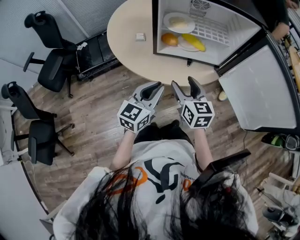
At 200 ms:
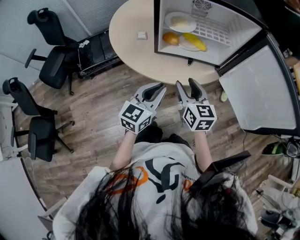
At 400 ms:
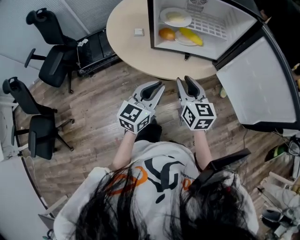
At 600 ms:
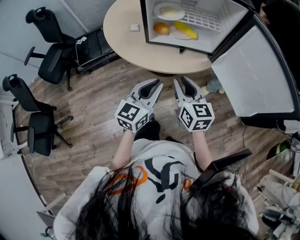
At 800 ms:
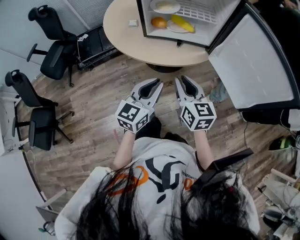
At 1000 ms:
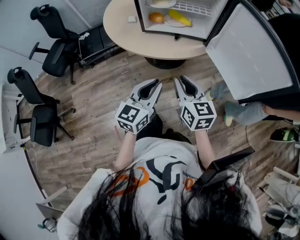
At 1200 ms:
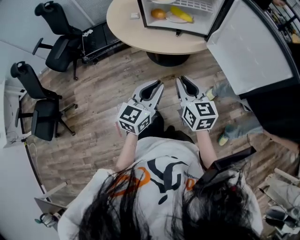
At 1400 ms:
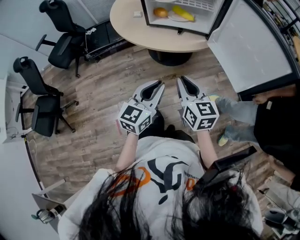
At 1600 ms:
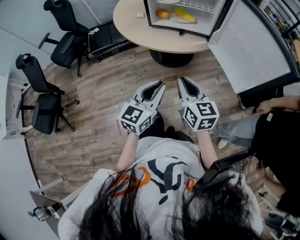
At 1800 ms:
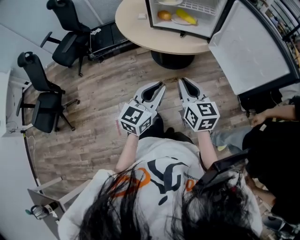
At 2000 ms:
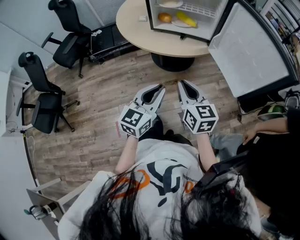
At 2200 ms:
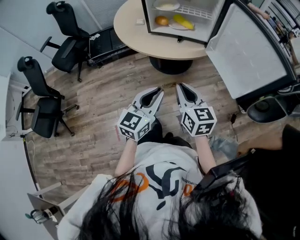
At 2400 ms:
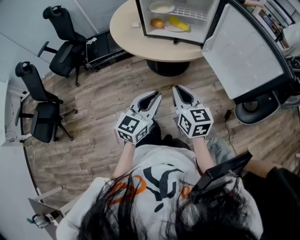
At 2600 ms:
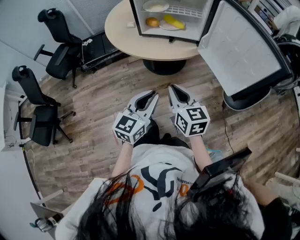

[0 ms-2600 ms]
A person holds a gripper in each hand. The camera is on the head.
0 ms to 1200 ms: Both grippers travel together backward and to the right, about 20 cm. The right gripper closes its fingers.
1200 ms to 2600 ms: The grippers make only small movements.

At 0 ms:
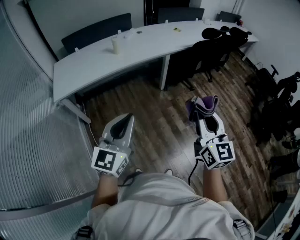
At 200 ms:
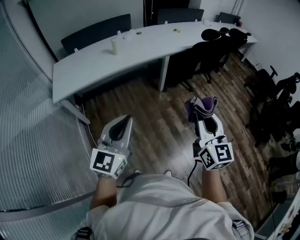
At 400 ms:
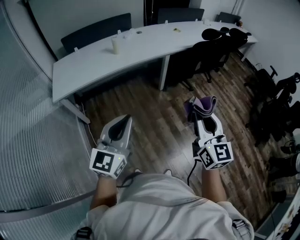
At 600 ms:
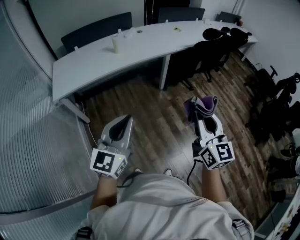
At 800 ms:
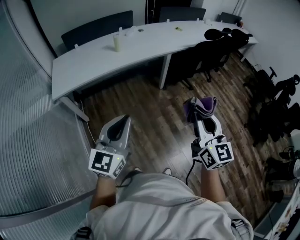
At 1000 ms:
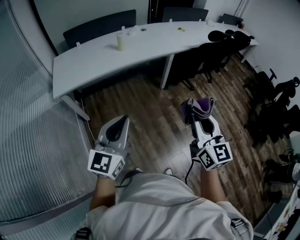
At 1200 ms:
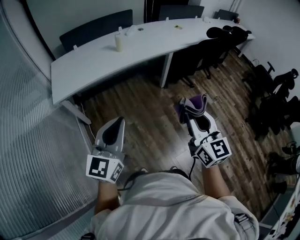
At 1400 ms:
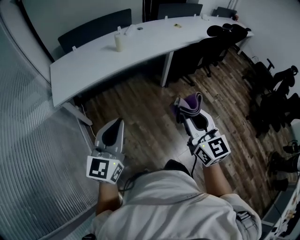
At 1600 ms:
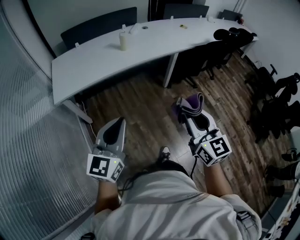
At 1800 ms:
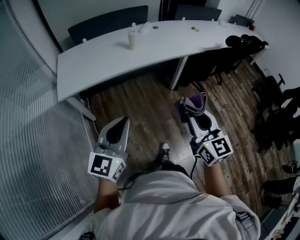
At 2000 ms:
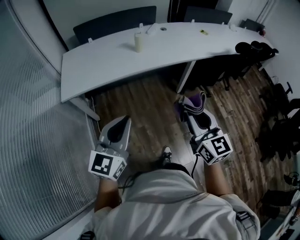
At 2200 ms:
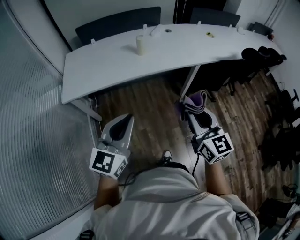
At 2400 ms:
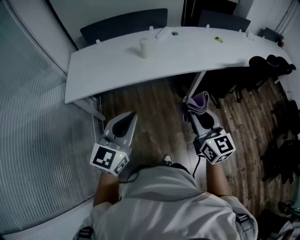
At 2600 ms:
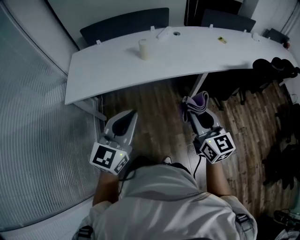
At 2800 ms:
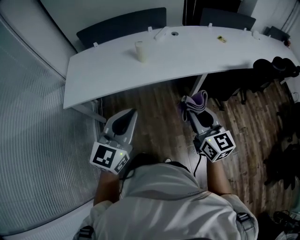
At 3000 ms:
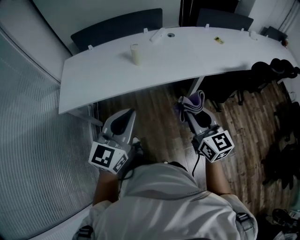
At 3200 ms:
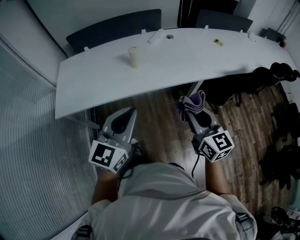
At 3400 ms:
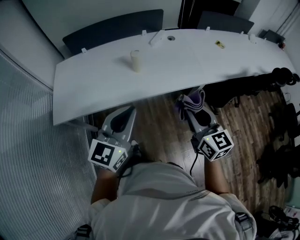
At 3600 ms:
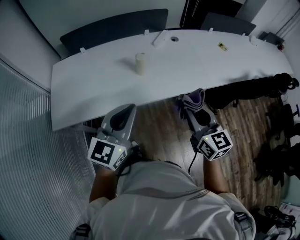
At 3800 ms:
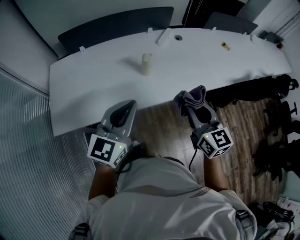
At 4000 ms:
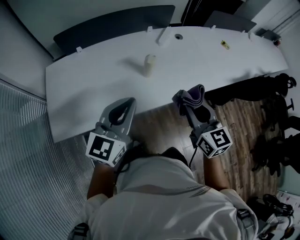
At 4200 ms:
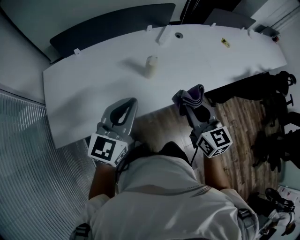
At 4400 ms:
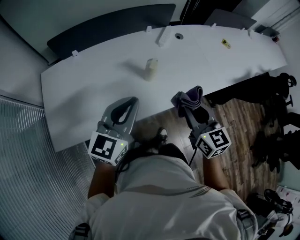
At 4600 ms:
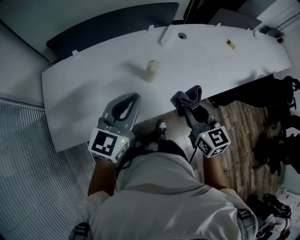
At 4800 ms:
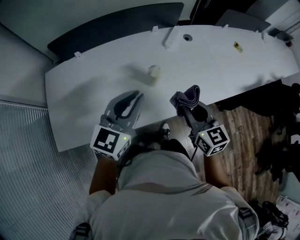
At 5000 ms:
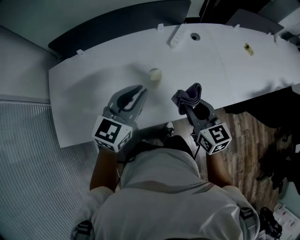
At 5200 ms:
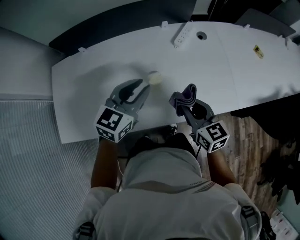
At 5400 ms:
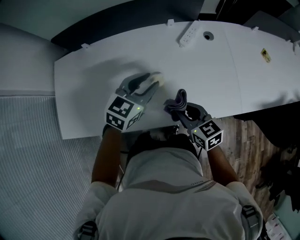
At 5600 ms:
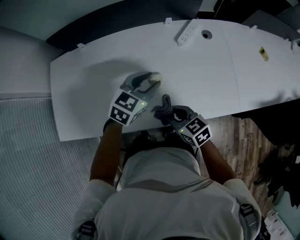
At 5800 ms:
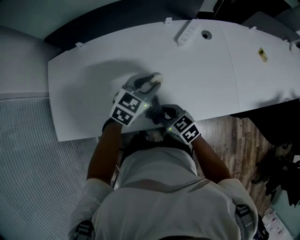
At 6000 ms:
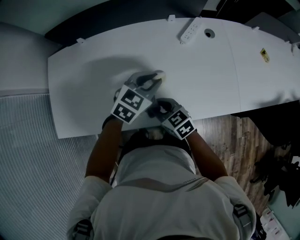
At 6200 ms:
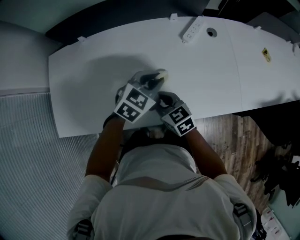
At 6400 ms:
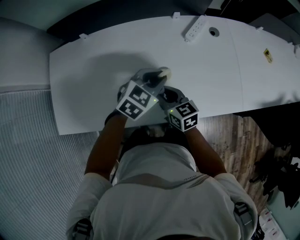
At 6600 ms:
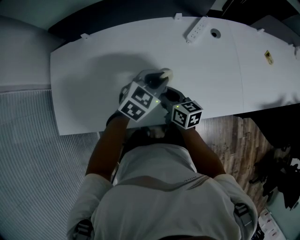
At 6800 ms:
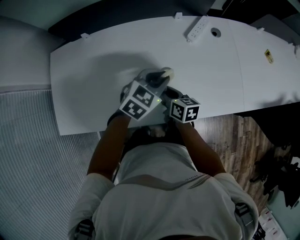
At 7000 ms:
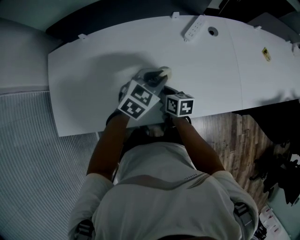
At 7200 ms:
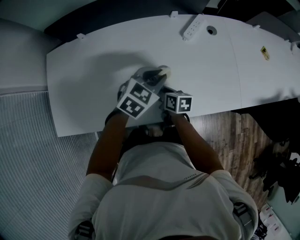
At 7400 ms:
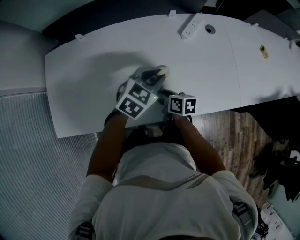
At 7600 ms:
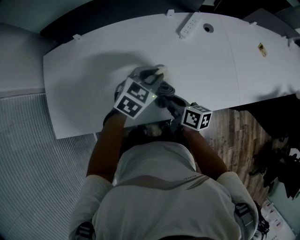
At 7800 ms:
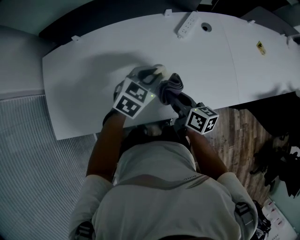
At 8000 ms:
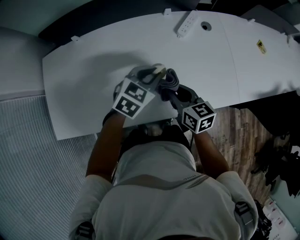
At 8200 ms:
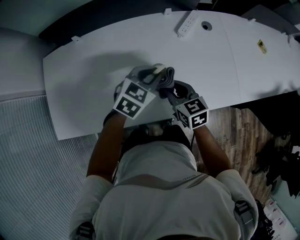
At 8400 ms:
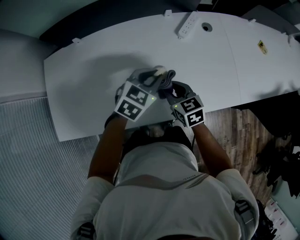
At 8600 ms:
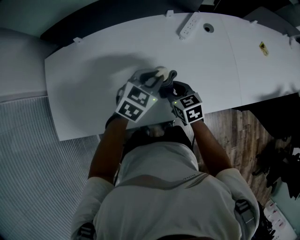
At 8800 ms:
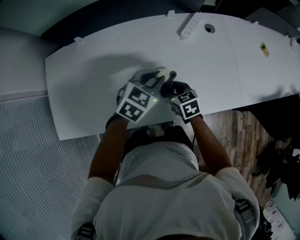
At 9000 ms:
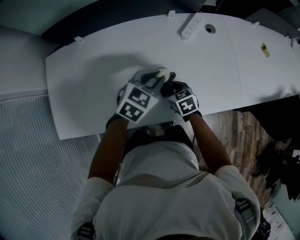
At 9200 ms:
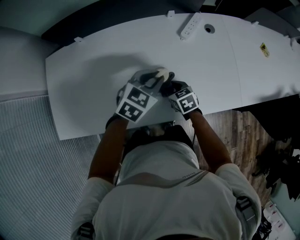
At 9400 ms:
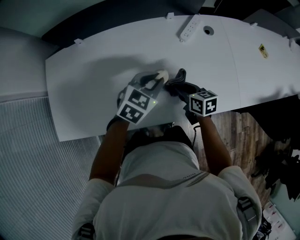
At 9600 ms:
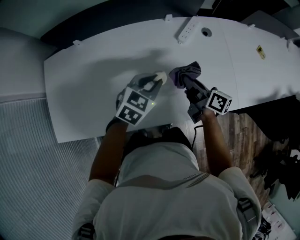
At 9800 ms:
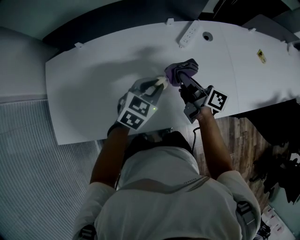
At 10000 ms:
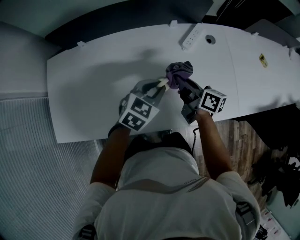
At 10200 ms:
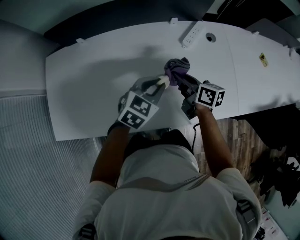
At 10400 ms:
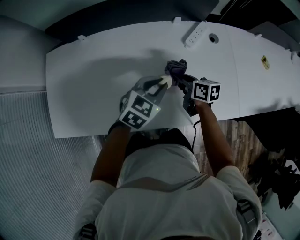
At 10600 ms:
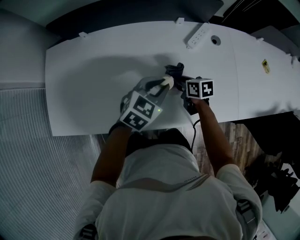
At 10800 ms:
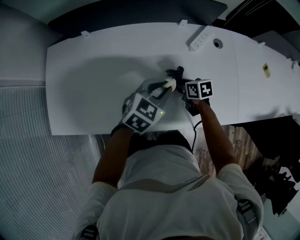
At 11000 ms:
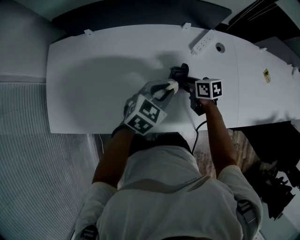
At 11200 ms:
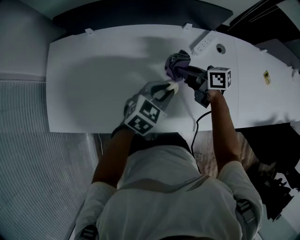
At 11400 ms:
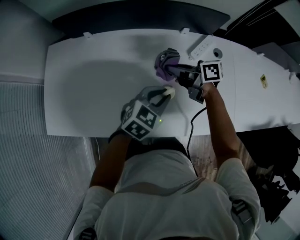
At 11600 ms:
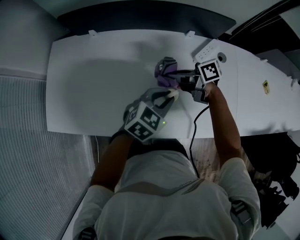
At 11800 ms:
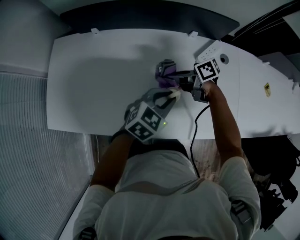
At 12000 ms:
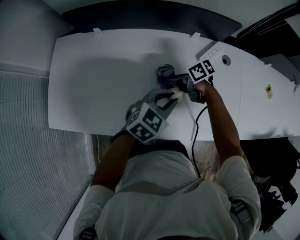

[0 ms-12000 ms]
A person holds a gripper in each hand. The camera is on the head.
0 ms to 1600 ms: The two grippers go about 15 cm to the left.
1600 ms to 3000 ms: The left gripper travels forward and to the right by roughly 35 cm. Meanwhile the right gripper heads forward, covering approximately 35 cm.
3000 ms to 4400 ms: The two grippers go roughly 35 cm forward and to the left.
4400 ms to 6000 ms: The left gripper heads forward, downward and to the right, covering approximately 30 cm, and tilts its fingers about 30 degrees downward; the right gripper moves downward, forward and to the left, some 25 cm, and swivels roughly 40 degrees.
6000 ms to 7600 ms: The right gripper reaches approximately 5 cm downward, then returns, and rotates around the line of its fingers by about 50 degrees, clockwise from behind.
7600 ms to 9000 ms: The right gripper moves downward and forward, some 10 cm, and changes its angle by roughly 50 degrees.
9000 ms to 10400 ms: The right gripper heads forward and upward, covering some 10 cm, and rotates about 30 degrees.
10400 ms to 12000 ms: The right gripper moves up and down over about 15 cm, changing direction 2 times, and swivels some 40 degrees.

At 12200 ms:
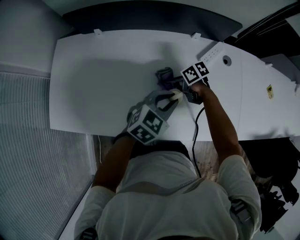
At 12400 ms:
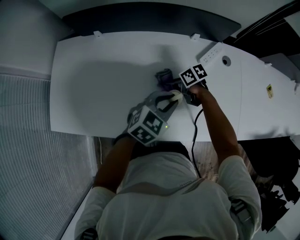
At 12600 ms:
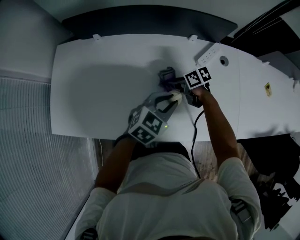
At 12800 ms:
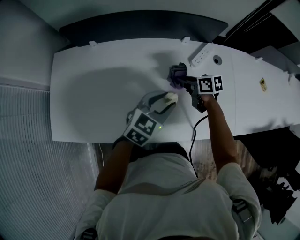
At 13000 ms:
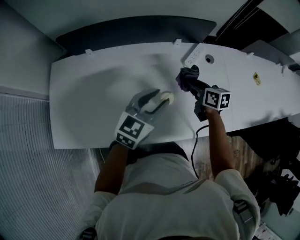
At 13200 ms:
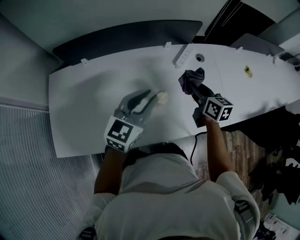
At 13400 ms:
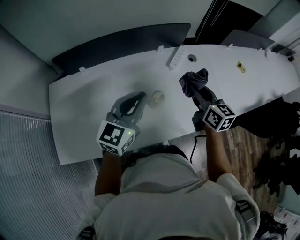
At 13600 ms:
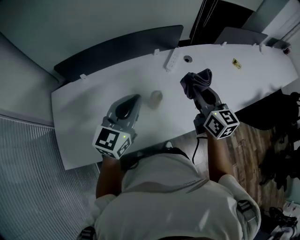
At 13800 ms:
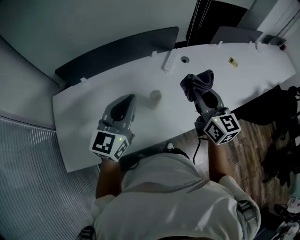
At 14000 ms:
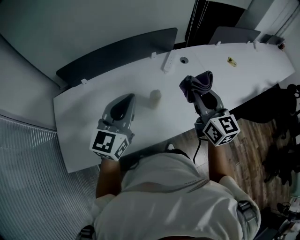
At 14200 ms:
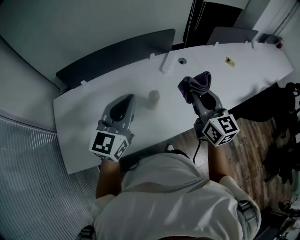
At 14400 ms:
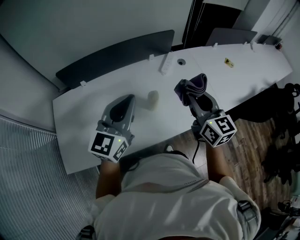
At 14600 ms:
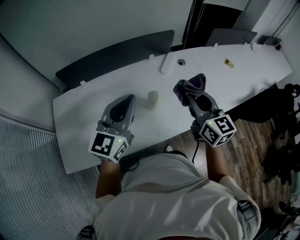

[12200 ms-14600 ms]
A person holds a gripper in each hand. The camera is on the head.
12200 ms to 13400 ms: The left gripper travels upward by roughly 15 cm, turns by roughly 30 degrees, and opens and closes again, while the right gripper travels upward by some 25 cm, and turns by some 80 degrees.
13400 ms to 14600 ms: The left gripper shifts about 10 cm upward and backward; the right gripper is displaced backward and upward by roughly 15 cm.

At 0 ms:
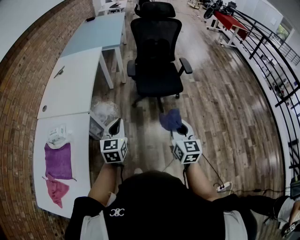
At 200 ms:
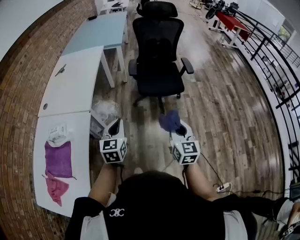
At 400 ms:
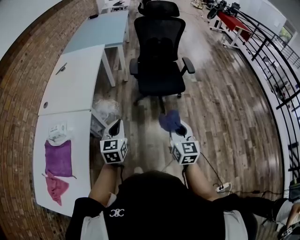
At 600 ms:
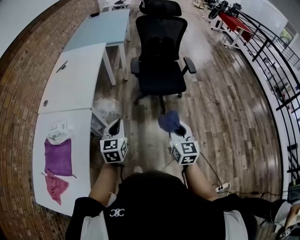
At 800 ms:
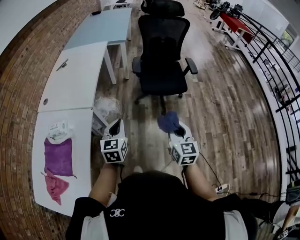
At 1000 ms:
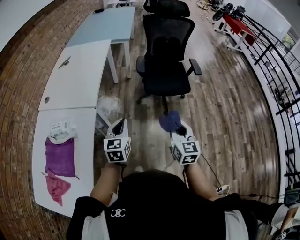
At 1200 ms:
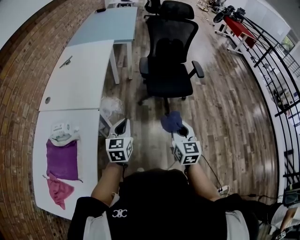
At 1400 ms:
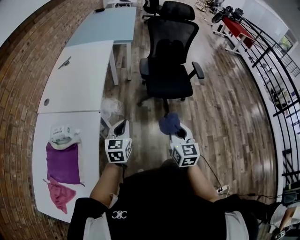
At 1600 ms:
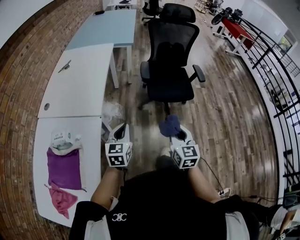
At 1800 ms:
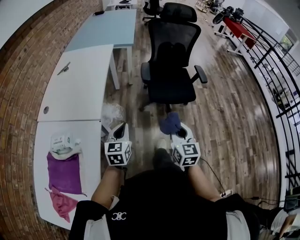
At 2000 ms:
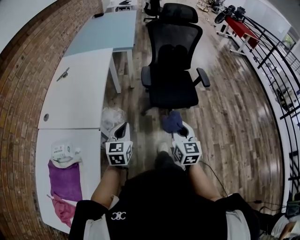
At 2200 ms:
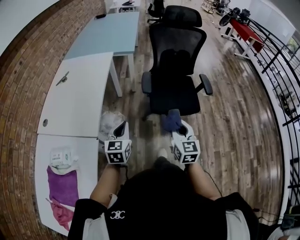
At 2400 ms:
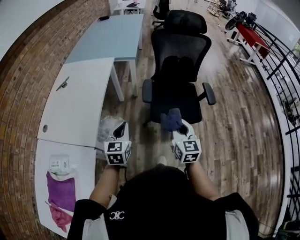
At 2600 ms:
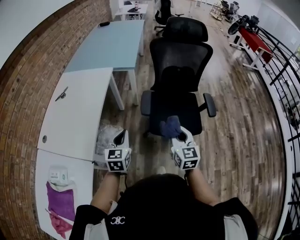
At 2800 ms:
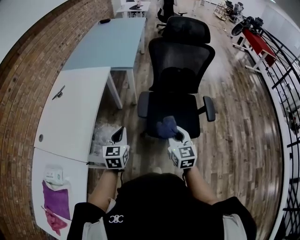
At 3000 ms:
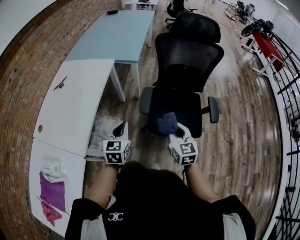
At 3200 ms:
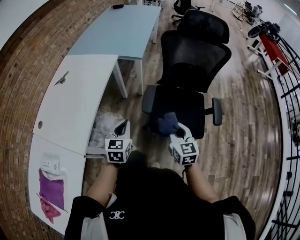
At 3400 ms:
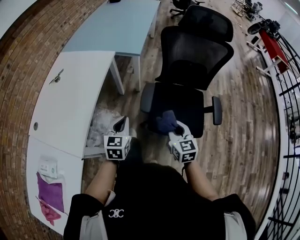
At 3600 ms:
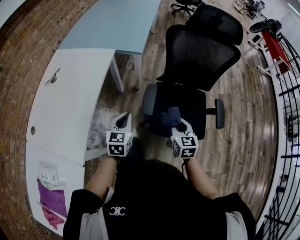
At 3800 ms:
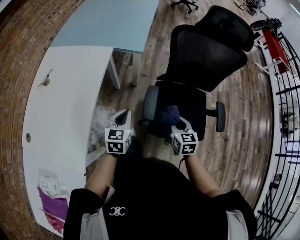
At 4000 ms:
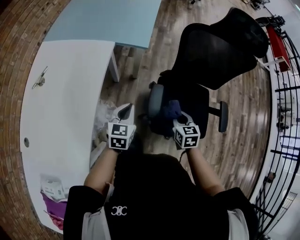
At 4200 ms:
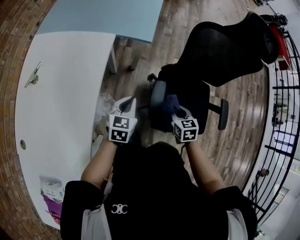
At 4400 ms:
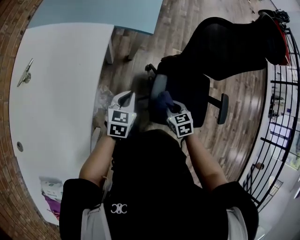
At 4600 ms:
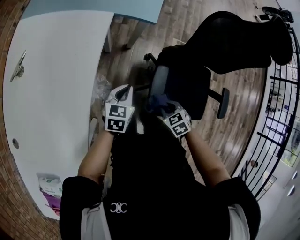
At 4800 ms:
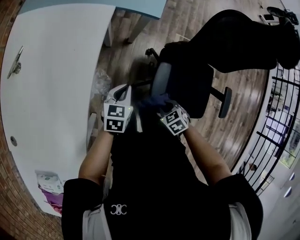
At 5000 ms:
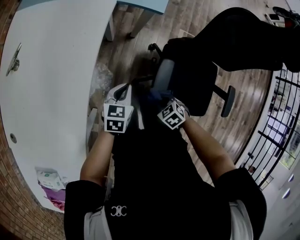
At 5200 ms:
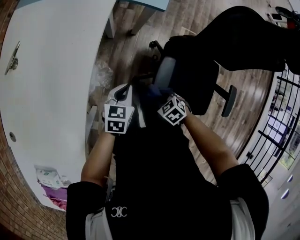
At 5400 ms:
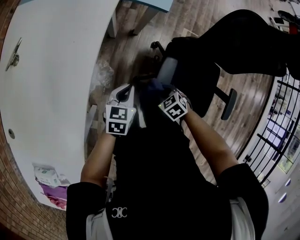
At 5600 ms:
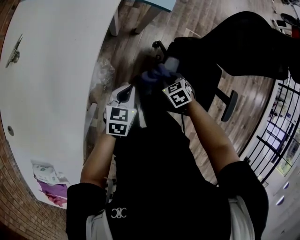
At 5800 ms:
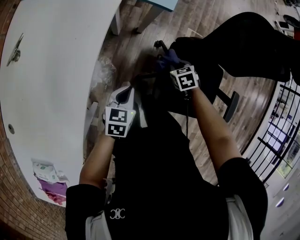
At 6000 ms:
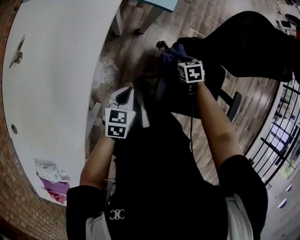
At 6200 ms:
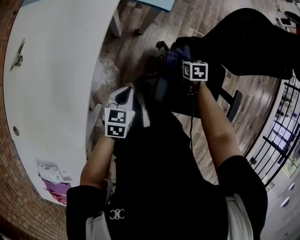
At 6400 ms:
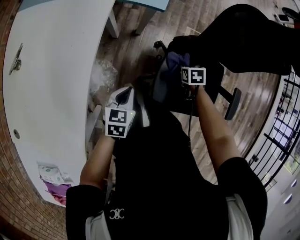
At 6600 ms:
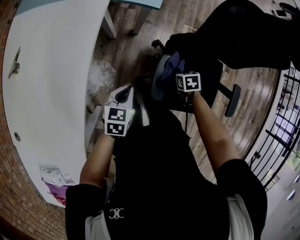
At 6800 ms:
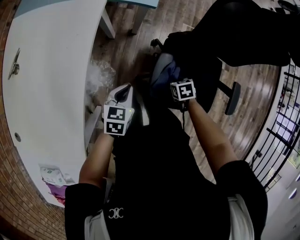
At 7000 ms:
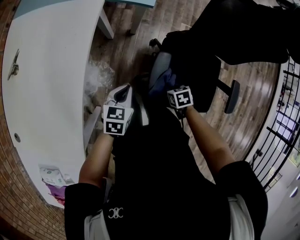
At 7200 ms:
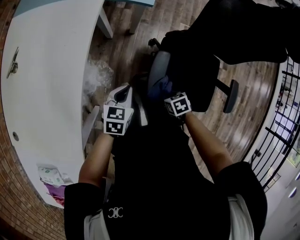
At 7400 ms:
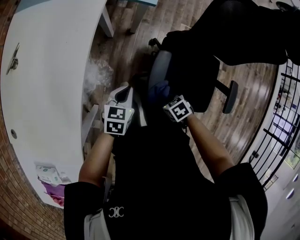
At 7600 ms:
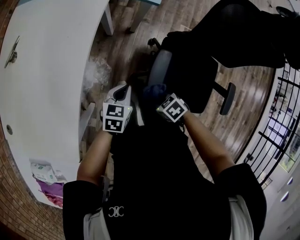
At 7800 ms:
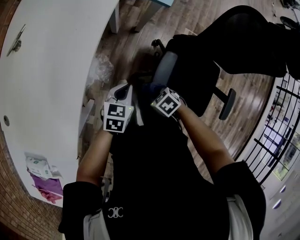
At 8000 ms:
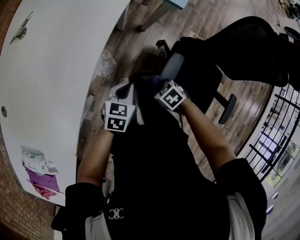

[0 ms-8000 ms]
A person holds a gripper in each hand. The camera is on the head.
0 ms to 1600 ms: The grippers both shift to the left and forward by about 15 cm.
1600 ms to 3200 ms: The two grippers go some 35 cm forward.
3200 ms to 4800 ms: The right gripper goes roughly 35 cm downward, forward and to the left, and points its fingers approximately 50 degrees further downward; the left gripper is displaced forward and downward by approximately 30 cm, and swivels roughly 20 degrees.
4800 ms to 6400 ms: The right gripper shifts by approximately 20 cm, and rotates roughly 30 degrees.
6400 ms to 8000 ms: The right gripper changes place by roughly 25 cm, and rolls counterclockwise, seen from behind, by some 40 degrees.
